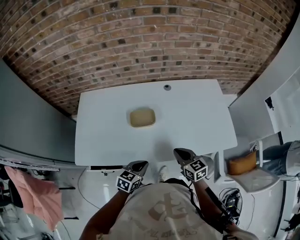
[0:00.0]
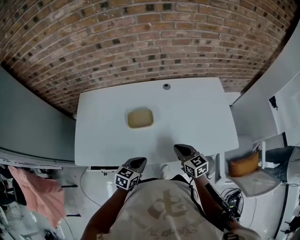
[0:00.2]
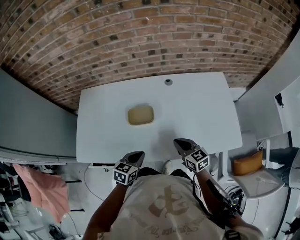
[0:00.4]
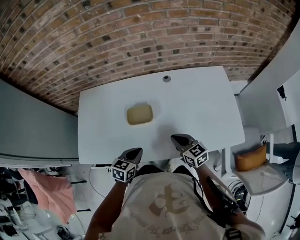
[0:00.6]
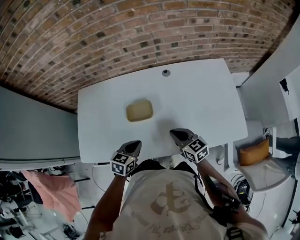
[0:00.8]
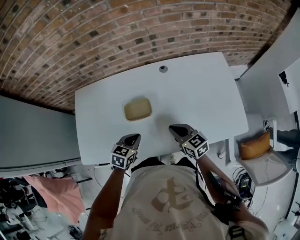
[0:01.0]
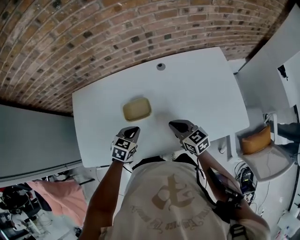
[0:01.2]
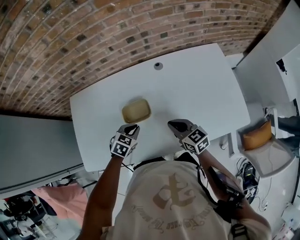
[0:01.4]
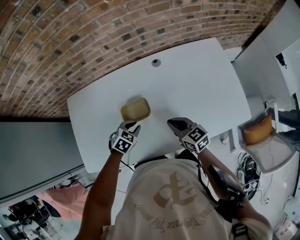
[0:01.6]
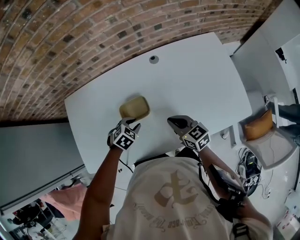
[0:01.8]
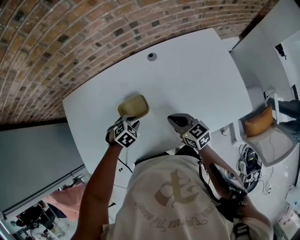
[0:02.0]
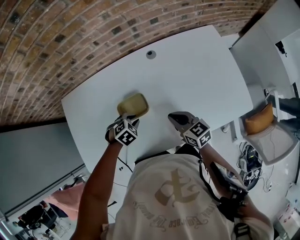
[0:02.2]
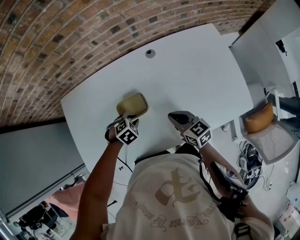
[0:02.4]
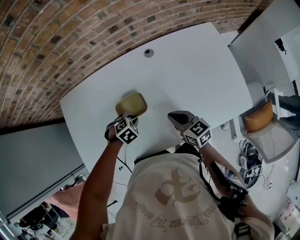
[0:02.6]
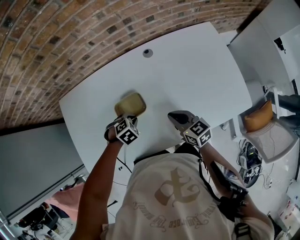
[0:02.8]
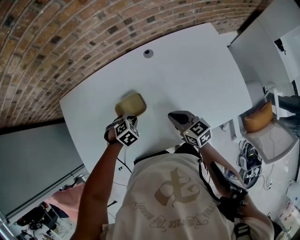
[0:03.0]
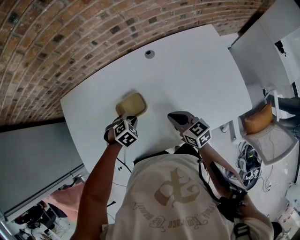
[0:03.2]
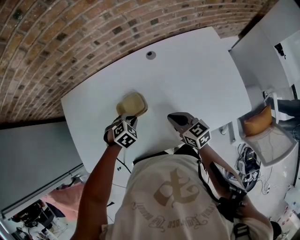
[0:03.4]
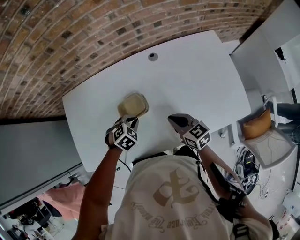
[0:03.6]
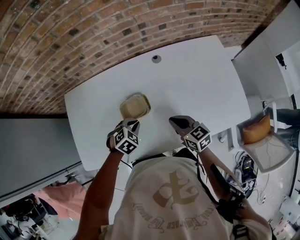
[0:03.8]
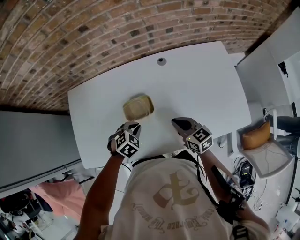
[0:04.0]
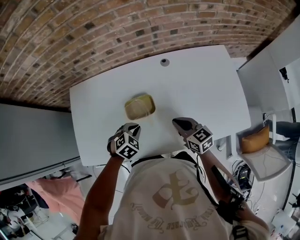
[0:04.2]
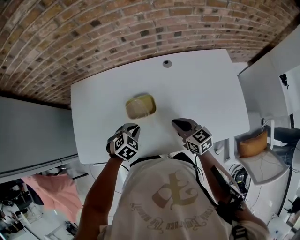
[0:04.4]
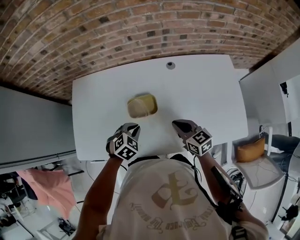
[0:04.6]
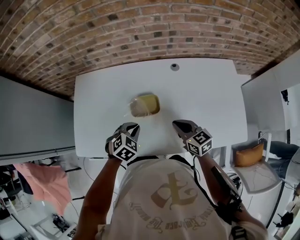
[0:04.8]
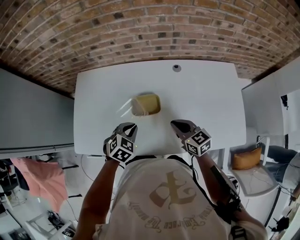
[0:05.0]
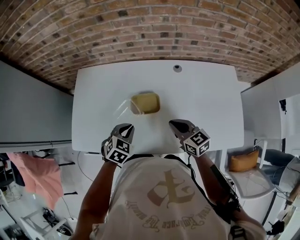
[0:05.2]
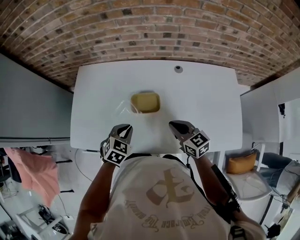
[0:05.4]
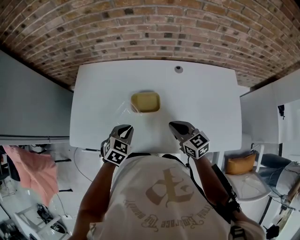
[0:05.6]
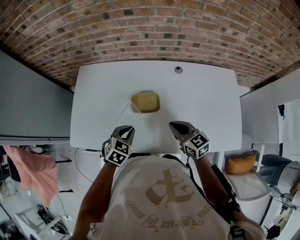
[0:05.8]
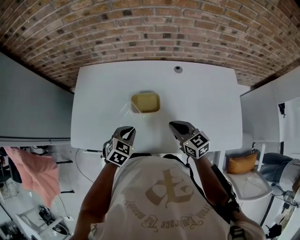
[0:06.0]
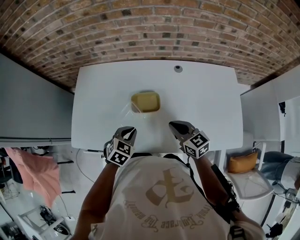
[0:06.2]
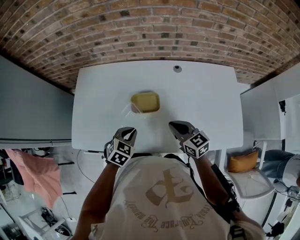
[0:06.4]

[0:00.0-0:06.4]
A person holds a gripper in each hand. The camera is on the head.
0:00.0 to 0:01.6: The left gripper moves forward, about 20 cm, and swivels about 40 degrees; the right gripper is displaced forward by about 15 cm.
0:01.6 to 0:03.2: The left gripper changes its angle by approximately 20 degrees.
0:03.2 to 0:04.8: The left gripper is displaced upward by approximately 10 cm, and changes its angle by about 30 degrees.
0:04.8 to 0:06.4: The grippers make only small movements.

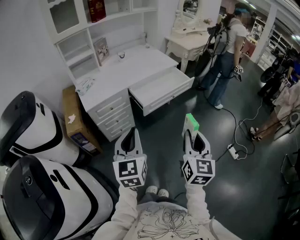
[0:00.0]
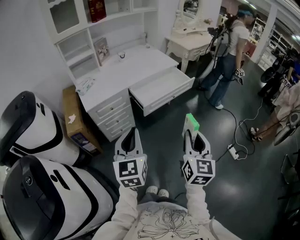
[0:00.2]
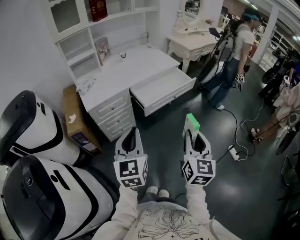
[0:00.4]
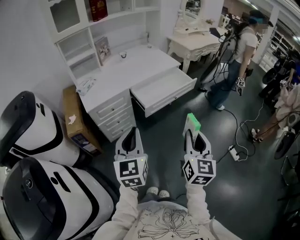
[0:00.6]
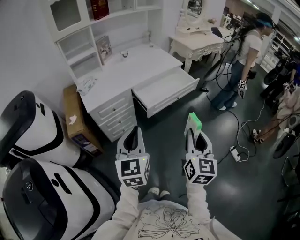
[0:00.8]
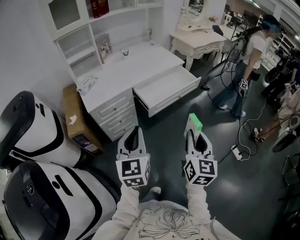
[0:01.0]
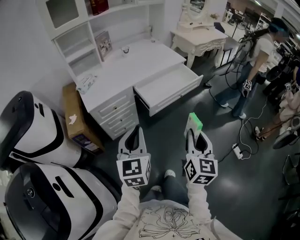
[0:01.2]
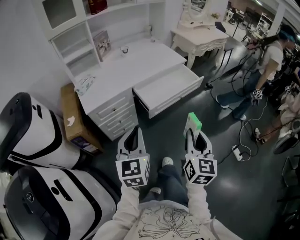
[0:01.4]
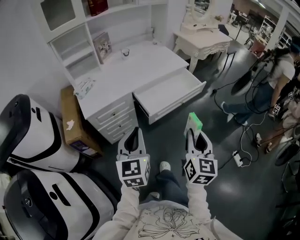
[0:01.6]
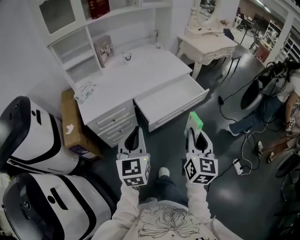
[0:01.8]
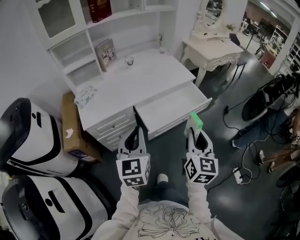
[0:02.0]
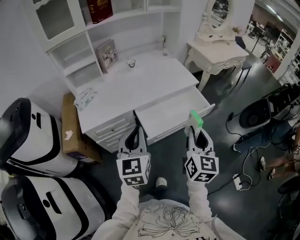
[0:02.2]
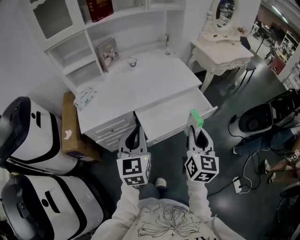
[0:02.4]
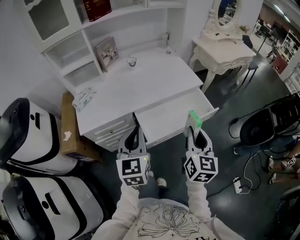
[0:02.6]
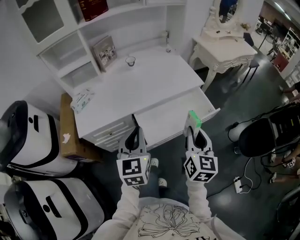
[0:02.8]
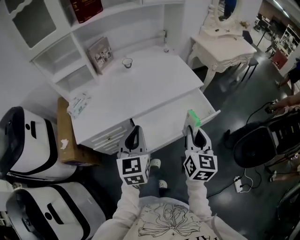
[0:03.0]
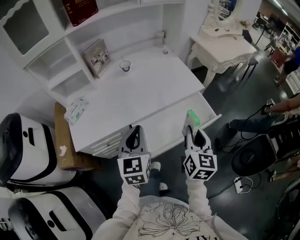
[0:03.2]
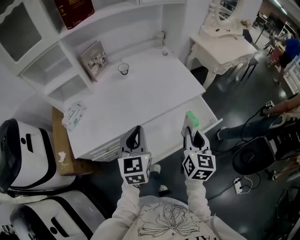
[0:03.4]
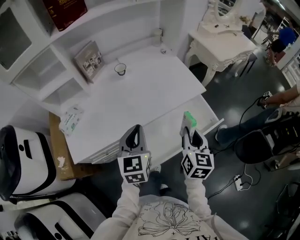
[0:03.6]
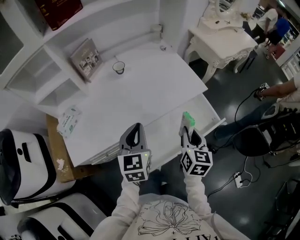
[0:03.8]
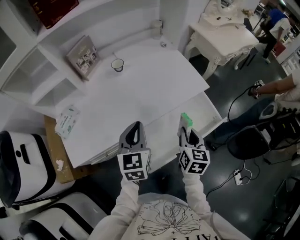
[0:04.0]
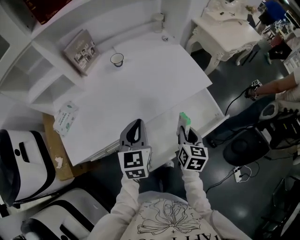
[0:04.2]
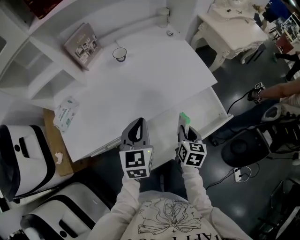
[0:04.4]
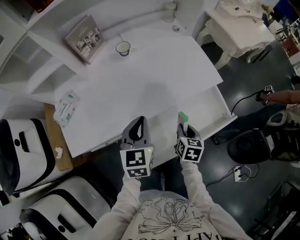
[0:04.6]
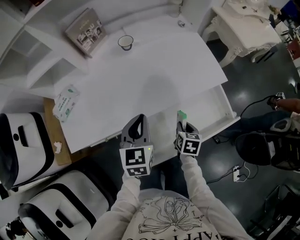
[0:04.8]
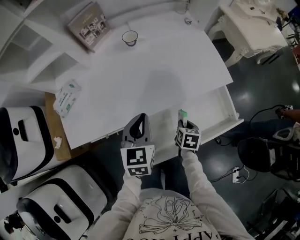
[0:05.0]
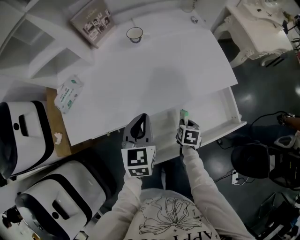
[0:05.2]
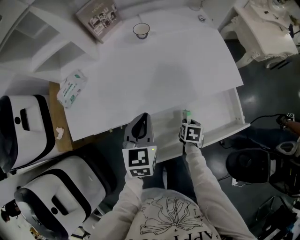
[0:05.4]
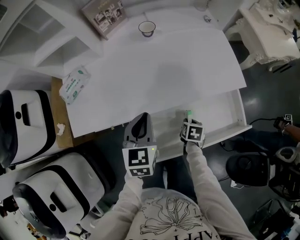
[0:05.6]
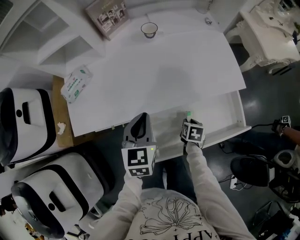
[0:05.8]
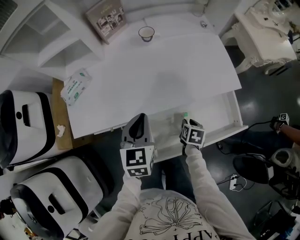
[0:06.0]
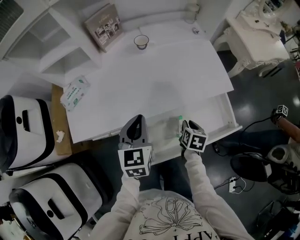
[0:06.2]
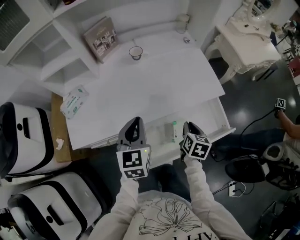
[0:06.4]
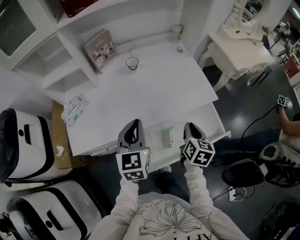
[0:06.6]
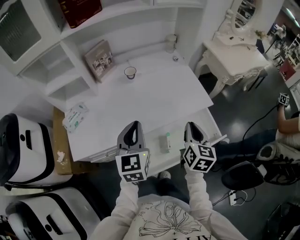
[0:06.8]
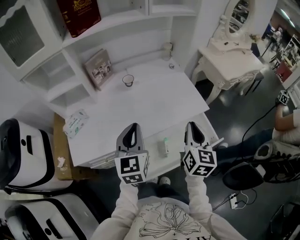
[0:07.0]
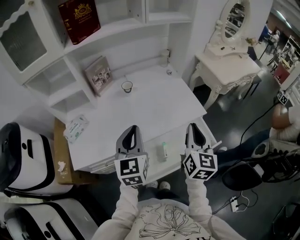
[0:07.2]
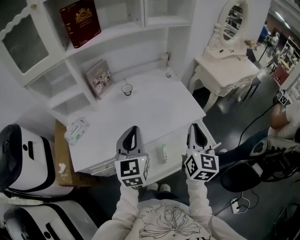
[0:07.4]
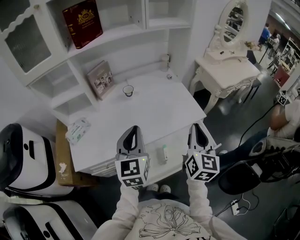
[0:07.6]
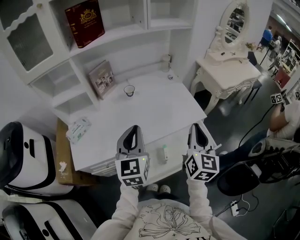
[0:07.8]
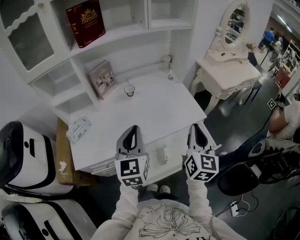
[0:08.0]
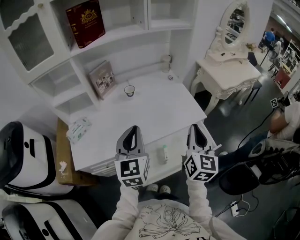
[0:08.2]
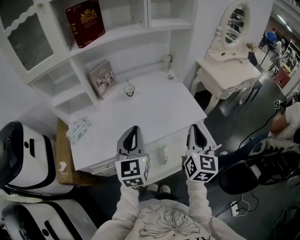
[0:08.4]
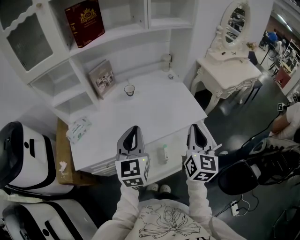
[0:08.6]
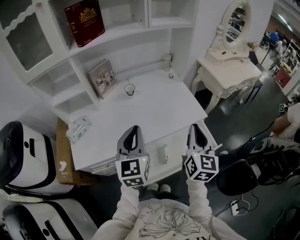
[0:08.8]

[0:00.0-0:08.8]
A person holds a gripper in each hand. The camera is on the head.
0:00.0 to 0:01.4: Both grippers move forward, roughly 10 cm.
0:01.4 to 0:03.0: Both grippers move forward, about 35 cm.
0:03.0 to 0:04.4: The left gripper moves forward and downward, approximately 20 cm, while the right gripper goes approximately 25 cm downward and forward, and turns by roughly 30 degrees.
0:04.4 to 0:05.8: The left gripper shifts about 5 cm to the left. The right gripper travels downward by about 15 cm, and swivels roughly 30 degrees.
0:05.8 to 0:07.4: The right gripper heads upward, covering some 40 cm, and tilts its fingers about 60 degrees upward; the left gripper is displaced upward by approximately 20 cm, and changes its angle by about 20 degrees.
0:07.4 to 0:08.8: The grippers make only small movements.

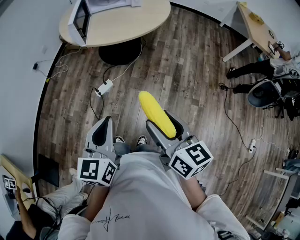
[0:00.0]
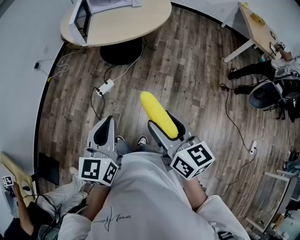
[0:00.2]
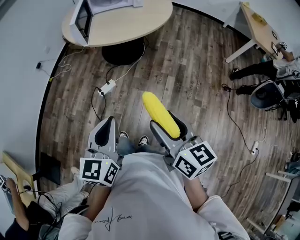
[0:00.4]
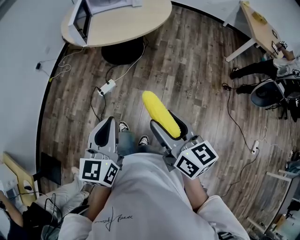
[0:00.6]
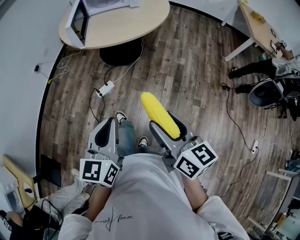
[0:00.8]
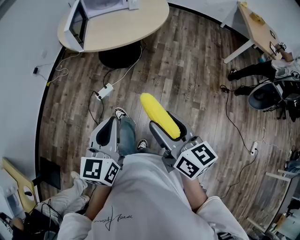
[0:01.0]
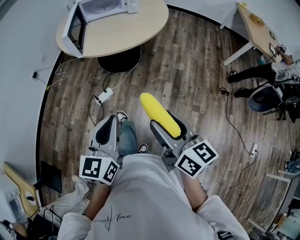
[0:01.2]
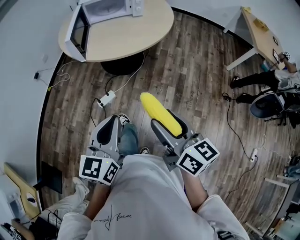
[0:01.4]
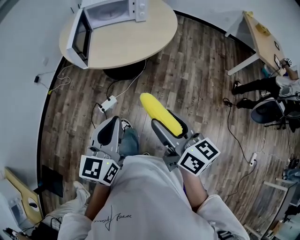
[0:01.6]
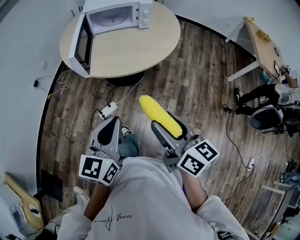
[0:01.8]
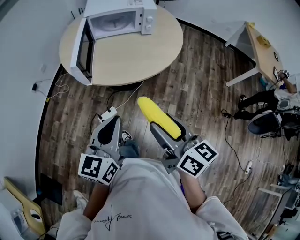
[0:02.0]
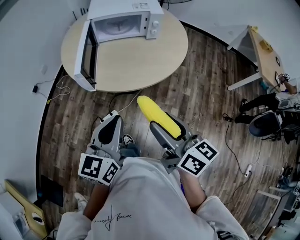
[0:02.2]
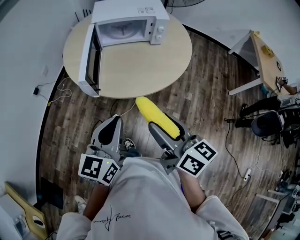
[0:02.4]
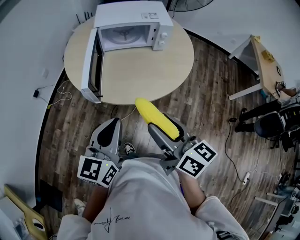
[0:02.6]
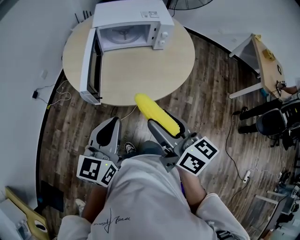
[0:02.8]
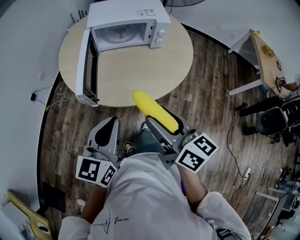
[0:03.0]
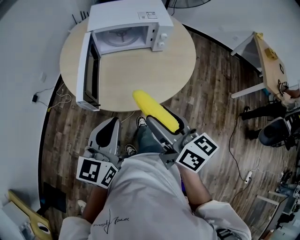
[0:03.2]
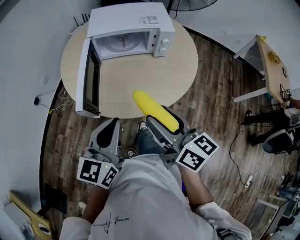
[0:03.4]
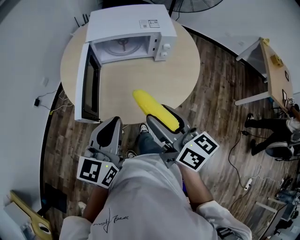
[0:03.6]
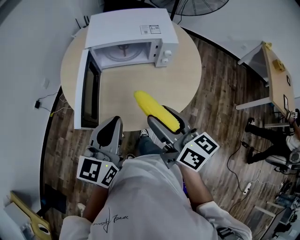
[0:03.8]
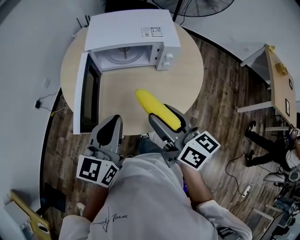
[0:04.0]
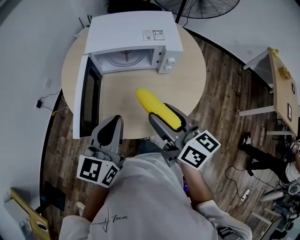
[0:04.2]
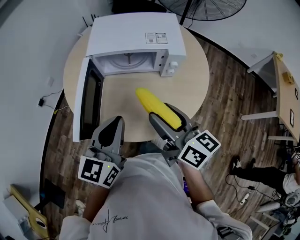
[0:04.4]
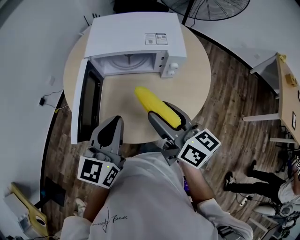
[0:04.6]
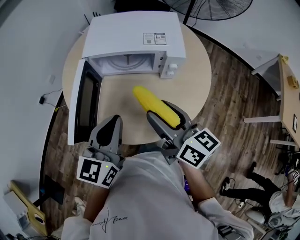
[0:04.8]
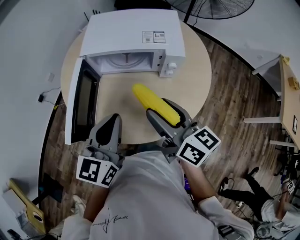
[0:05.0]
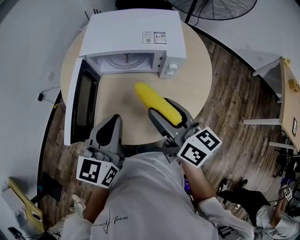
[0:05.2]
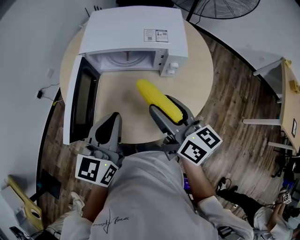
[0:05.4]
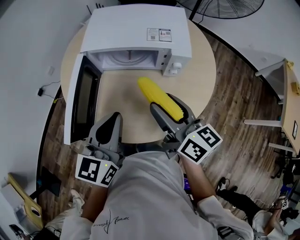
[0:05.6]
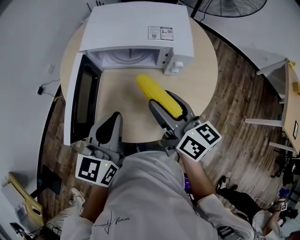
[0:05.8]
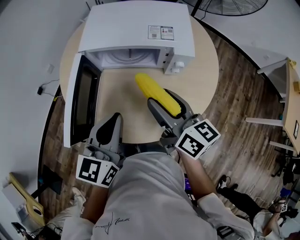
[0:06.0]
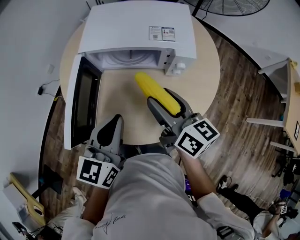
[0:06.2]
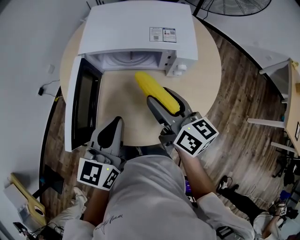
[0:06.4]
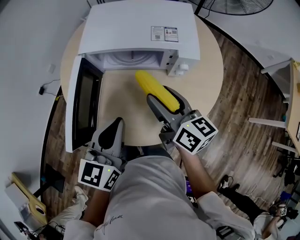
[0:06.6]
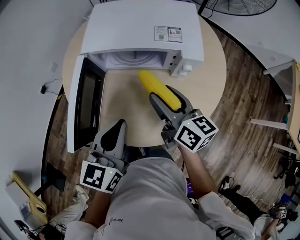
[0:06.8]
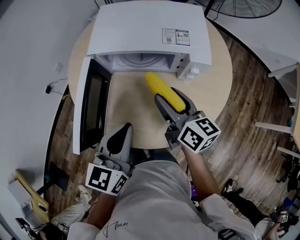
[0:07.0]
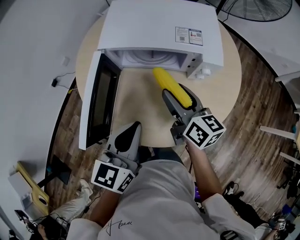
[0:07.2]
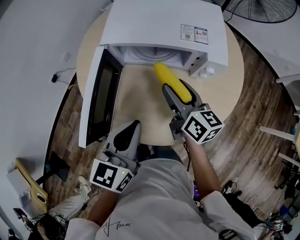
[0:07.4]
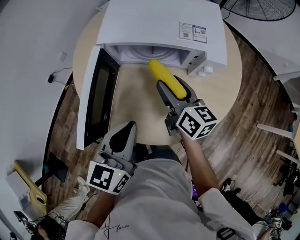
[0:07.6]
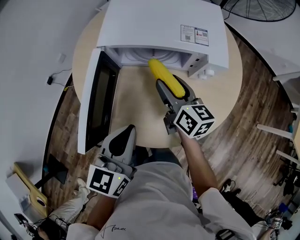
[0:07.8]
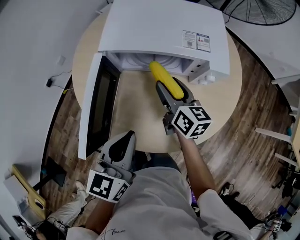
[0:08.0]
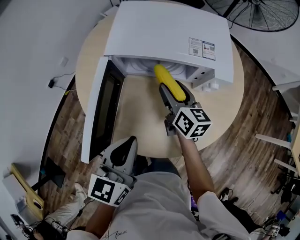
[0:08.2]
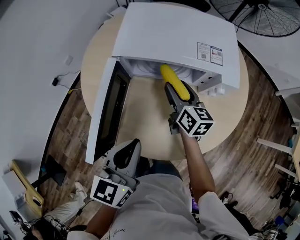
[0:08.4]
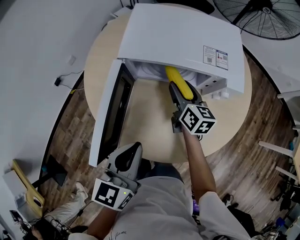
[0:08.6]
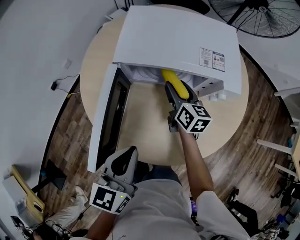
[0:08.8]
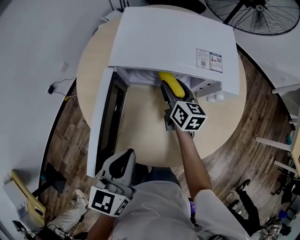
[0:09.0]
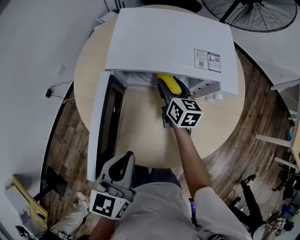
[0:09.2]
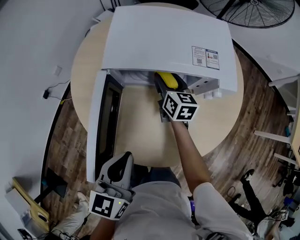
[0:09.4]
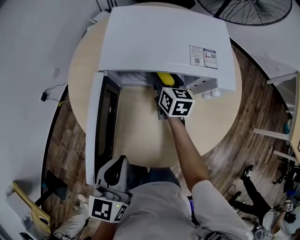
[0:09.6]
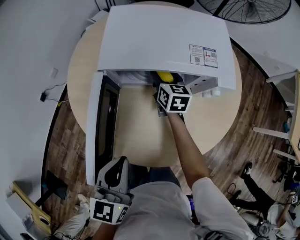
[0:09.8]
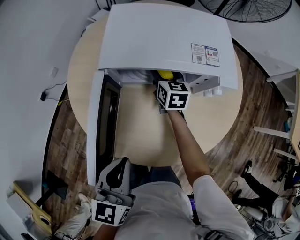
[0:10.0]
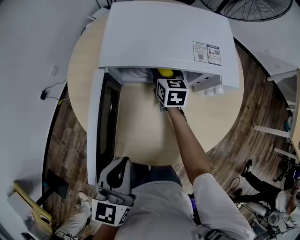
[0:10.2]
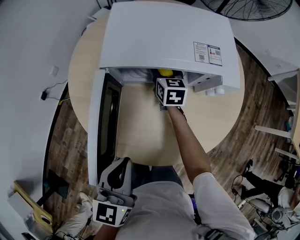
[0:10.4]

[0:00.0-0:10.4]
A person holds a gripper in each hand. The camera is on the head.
0:00.0 to 0:01.4: Both grippers move forward, approximately 10 cm.
0:01.4 to 0:03.0: The two grippers go some 35 cm forward.
0:03.0 to 0:04.4: Both grippers move forward, approximately 20 cm.
0:04.4 to 0:06.0: The left gripper is displaced forward by roughly 5 cm. The right gripper shifts about 10 cm forward.
0:06.0 to 0:07.4: The right gripper travels downward and forward by about 10 cm.
0:07.4 to 0:09.0: The left gripper goes some 5 cm to the left. The right gripper shifts approximately 15 cm forward and downward.
0:09.0 to 0:10.4: The right gripper heads forward, covering approximately 5 cm.
